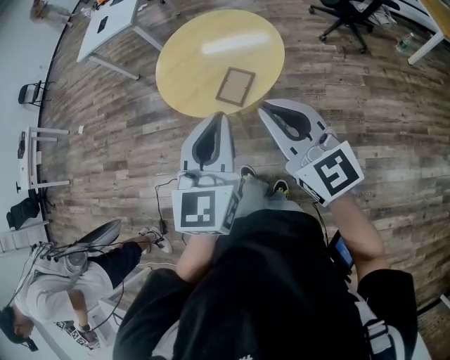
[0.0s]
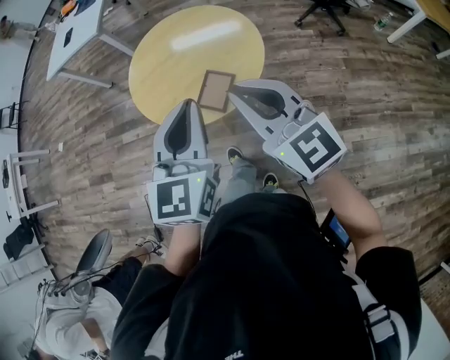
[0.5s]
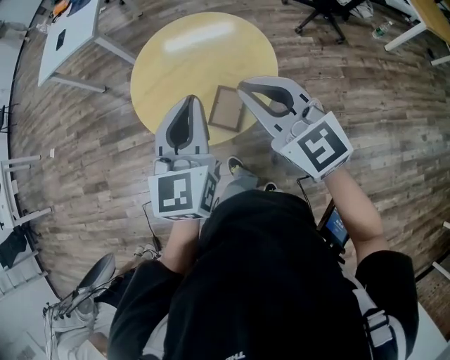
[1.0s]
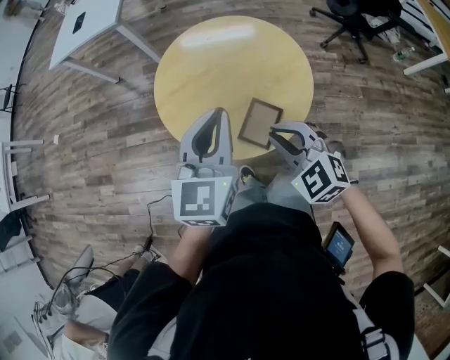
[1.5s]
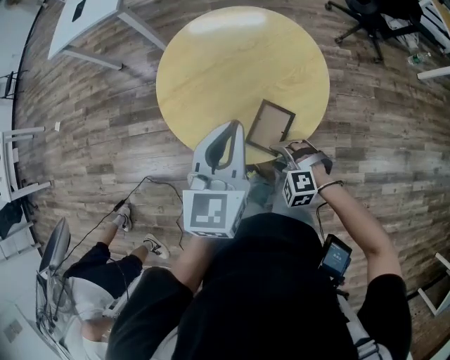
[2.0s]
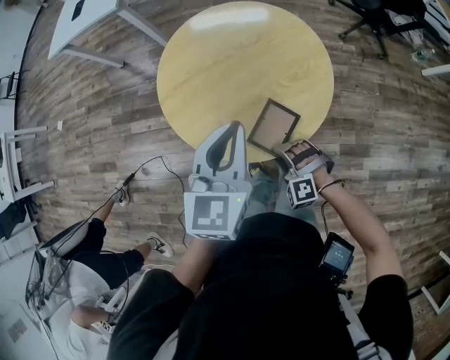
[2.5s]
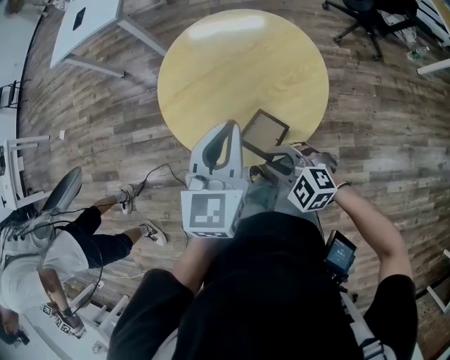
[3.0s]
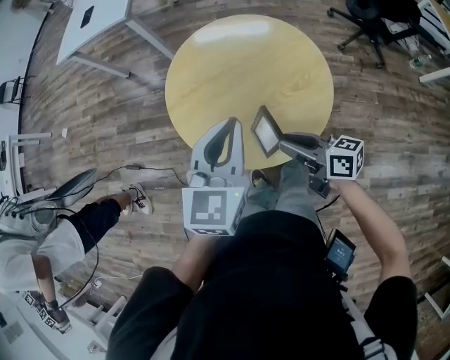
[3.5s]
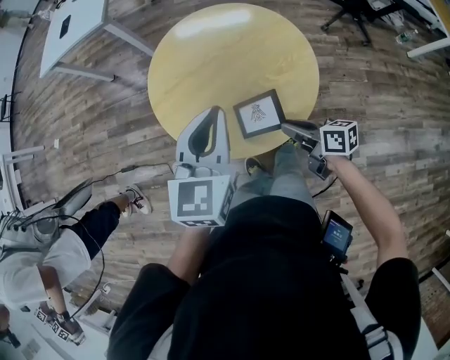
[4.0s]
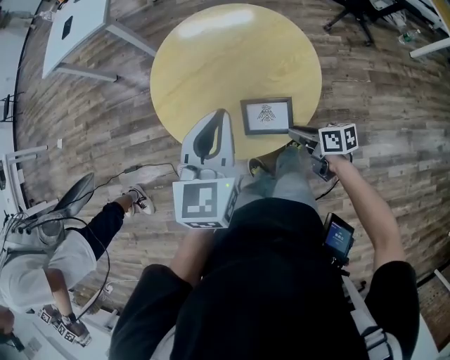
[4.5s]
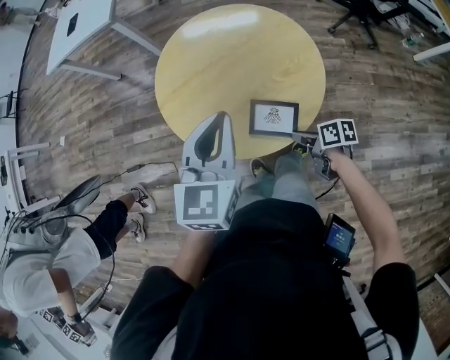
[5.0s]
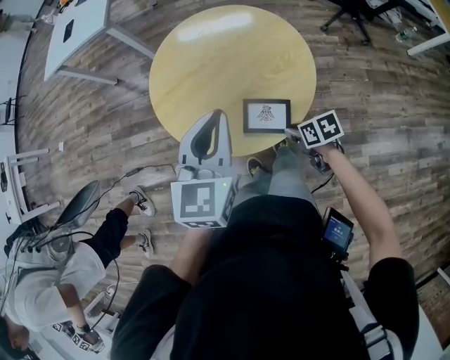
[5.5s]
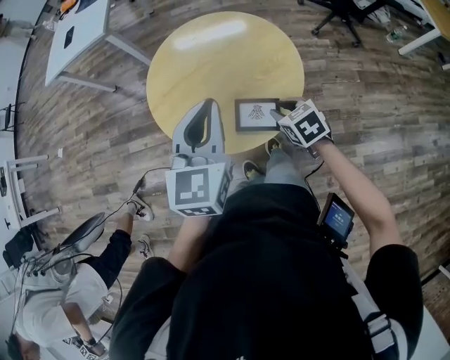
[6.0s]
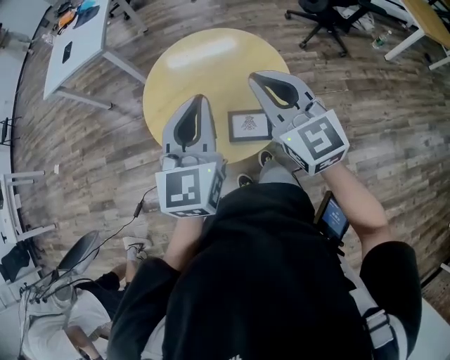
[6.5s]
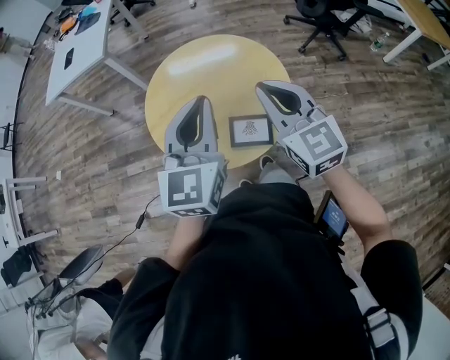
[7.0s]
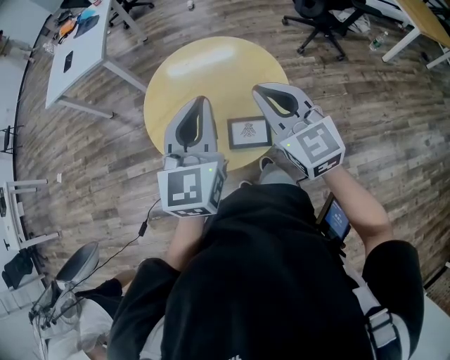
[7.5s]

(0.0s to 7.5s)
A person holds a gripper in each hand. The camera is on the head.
0.0s - 2.0s: The left gripper is displaced forward and downward by approximately 30 cm. The right gripper goes approximately 40 cm downward and forward, points its fingers approximately 60 degrees further downward, and opens up.
2.0s - 4.0s: The right gripper is displaced to the right, upward and forward by approximately 10 cm, rotates around the line of its fingers by some 90 degrees, clockwise from behind, and closes up.
4.0s - 5.5s: The right gripper moves downward, roughly 5 cm, and changes its angle by about 30 degrees.
5.5s - 7.5s: The left gripper moves upward, about 10 cm; the right gripper travels upward by roughly 35 cm, and tips its fingers upward by some 50 degrees.

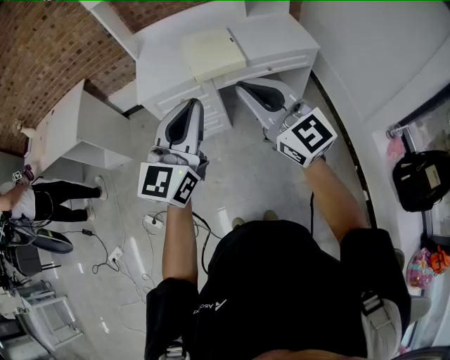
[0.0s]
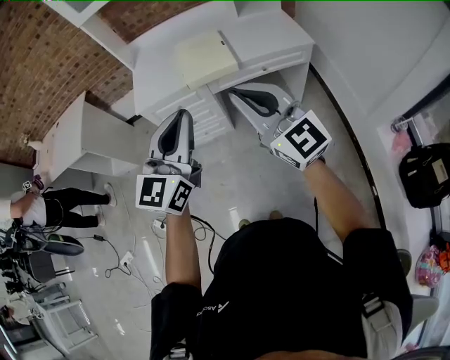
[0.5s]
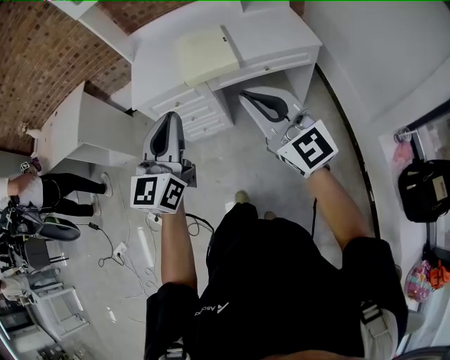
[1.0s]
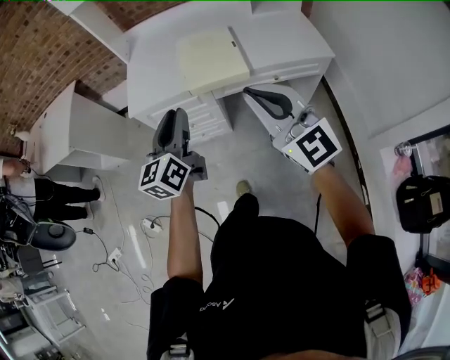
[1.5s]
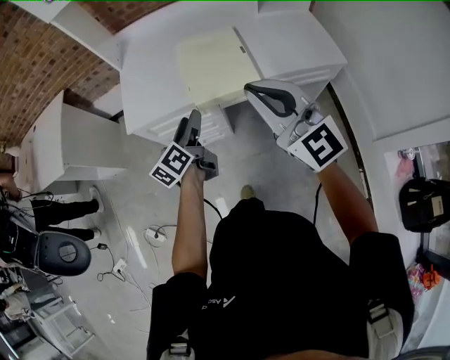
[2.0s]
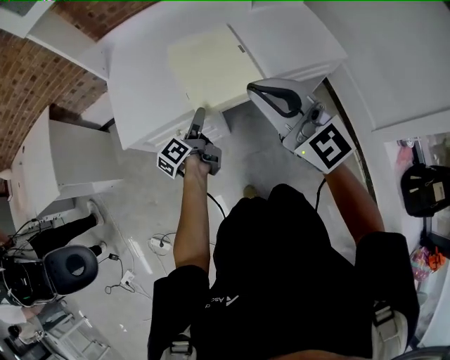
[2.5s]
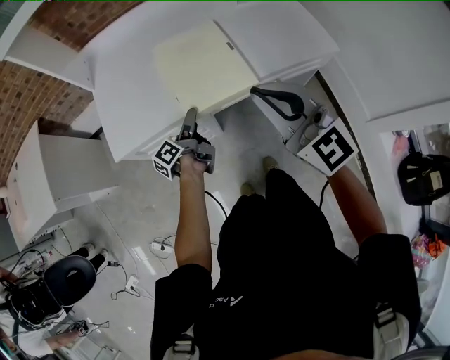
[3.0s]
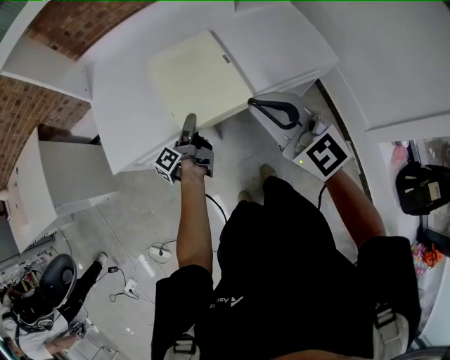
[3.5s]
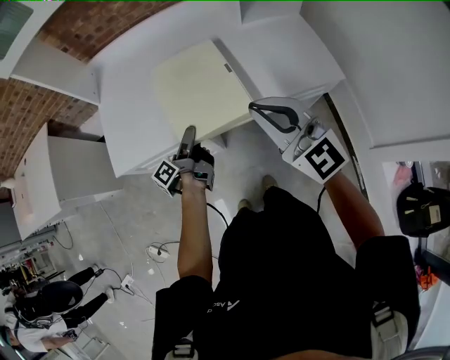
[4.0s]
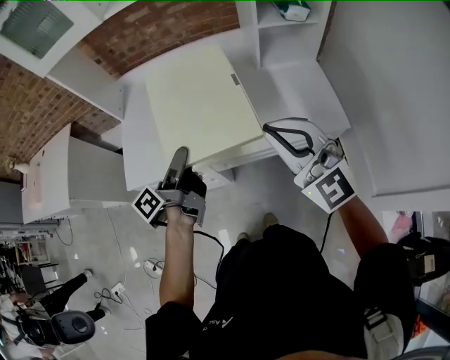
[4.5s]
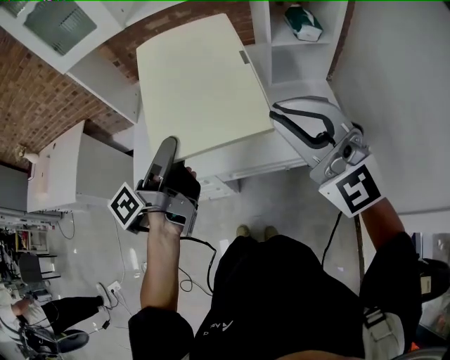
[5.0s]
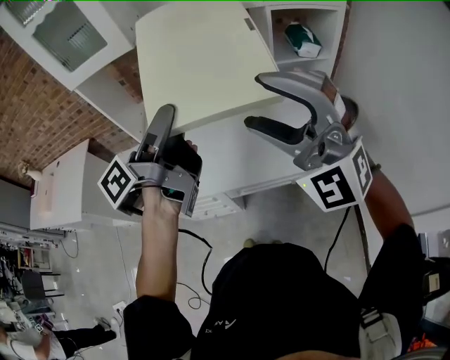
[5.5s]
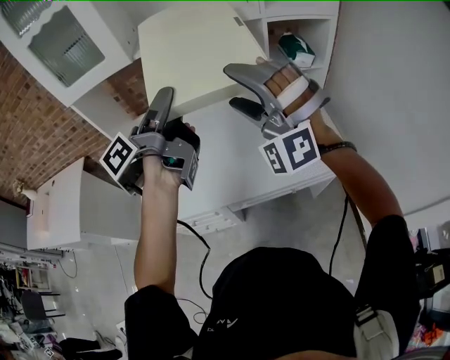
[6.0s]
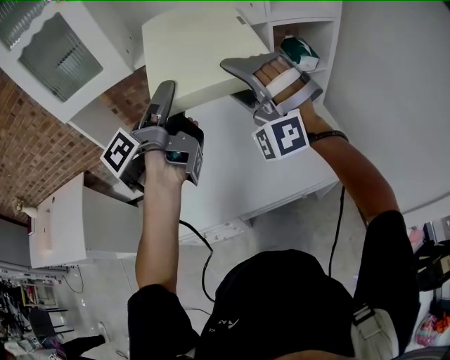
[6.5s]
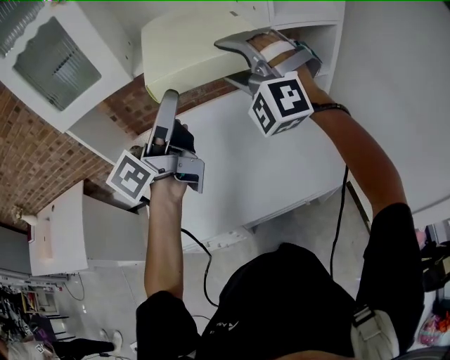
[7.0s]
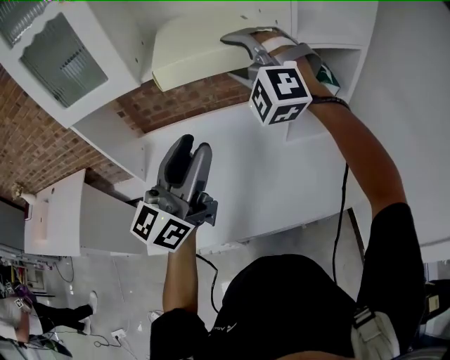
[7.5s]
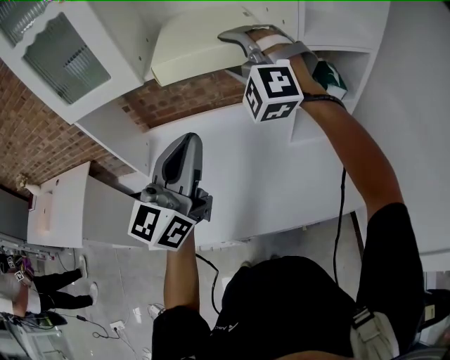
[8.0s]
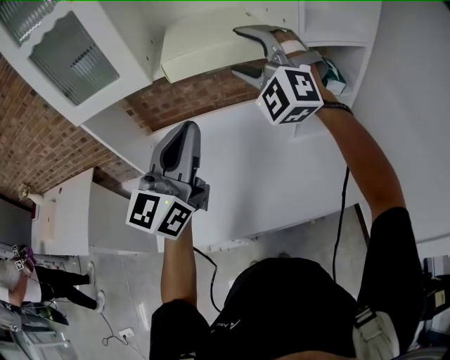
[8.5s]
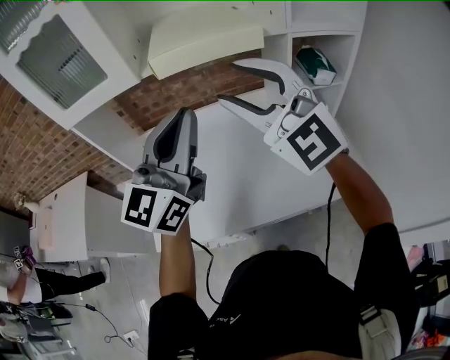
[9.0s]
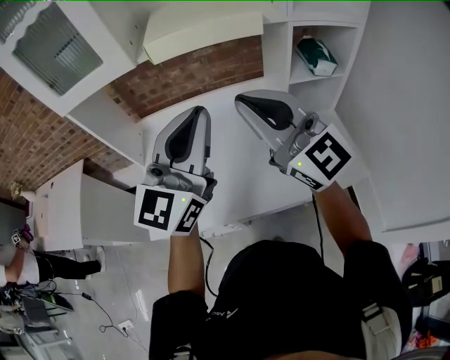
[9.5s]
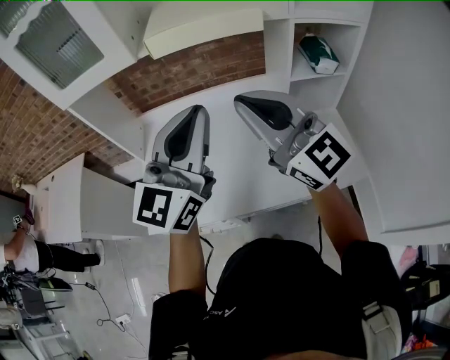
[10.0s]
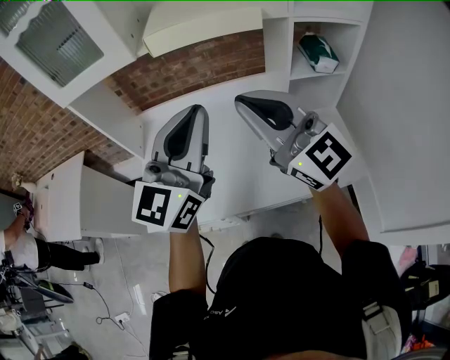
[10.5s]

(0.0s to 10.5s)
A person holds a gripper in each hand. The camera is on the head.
0.0s - 2.0s: The left gripper travels forward and downward by about 50 cm, rolls counterclockwise, seen from behind, by approximately 50 degrees, and opens its fingers; the right gripper travels forward by some 30 cm.
2.0s - 4.0s: The left gripper travels forward, downward and to the right by roughly 20 cm, and rotates around the line of its fingers by roughly 40 degrees, counterclockwise from behind, while the right gripper heads forward, to the right and downward, covering approximately 20 cm.
4.0s - 6.5s: The left gripper moves upward, some 50 cm, and swivels approximately 20 degrees, while the right gripper travels forward and upward by some 30 cm, rolls counterclockwise, seen from behind, by some 80 degrees, and opens its fingers.
6.5s - 8.5s: The left gripper rotates around the line of its fingers by approximately 80 degrees, clockwise from behind, and closes up; the right gripper travels forward and upward by approximately 15 cm, and swivels roughly 20 degrees.
8.5s - 10.5s: The left gripper moves roughly 5 cm. Meanwhile the right gripper shifts approximately 15 cm backward, rotates around the line of its fingers by about 60 degrees, clockwise from behind, and closes its fingers.

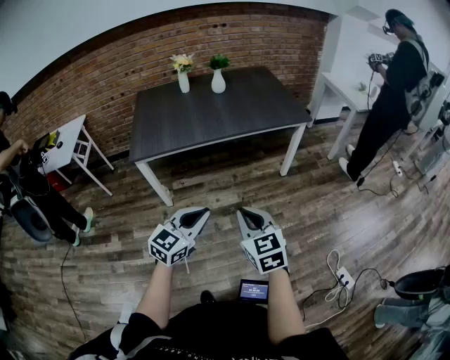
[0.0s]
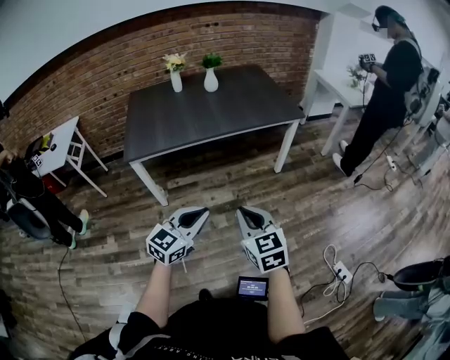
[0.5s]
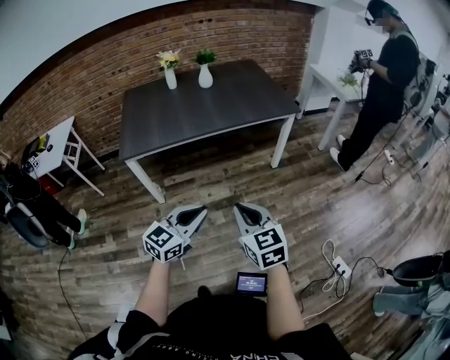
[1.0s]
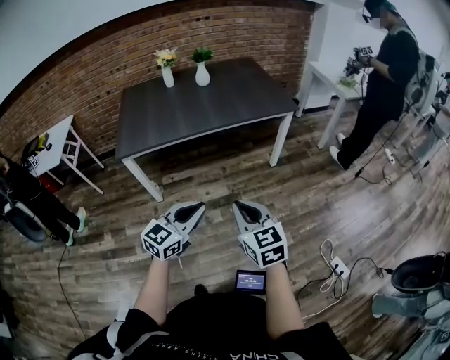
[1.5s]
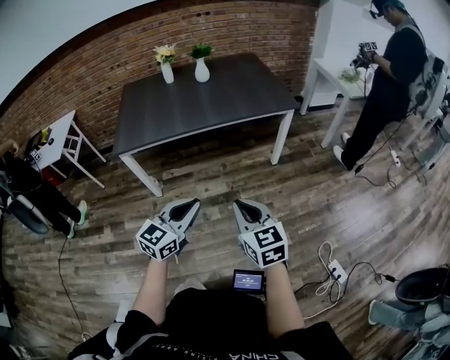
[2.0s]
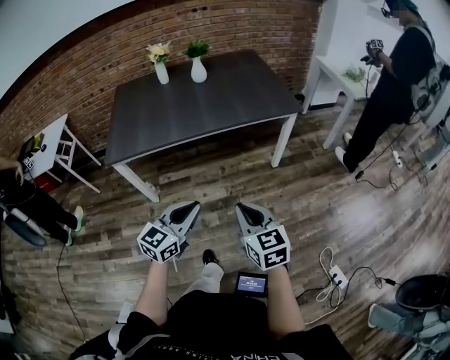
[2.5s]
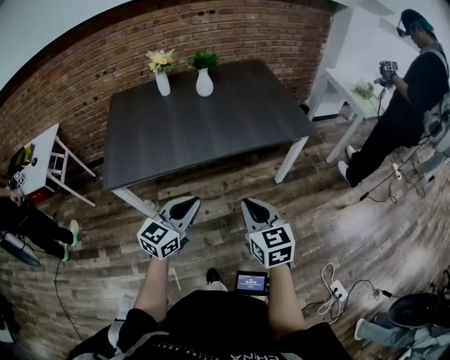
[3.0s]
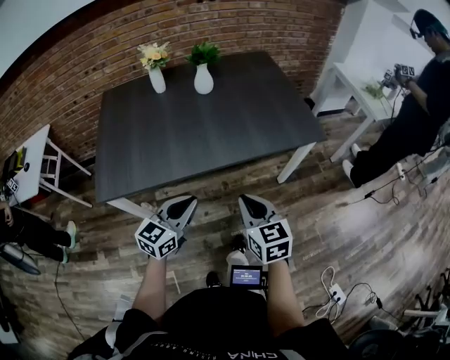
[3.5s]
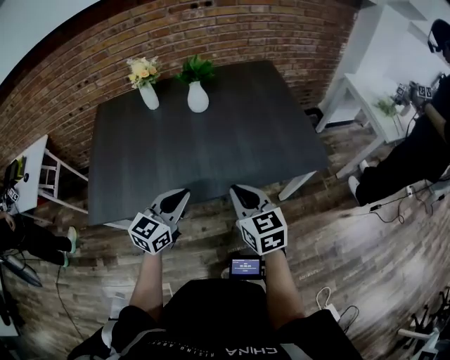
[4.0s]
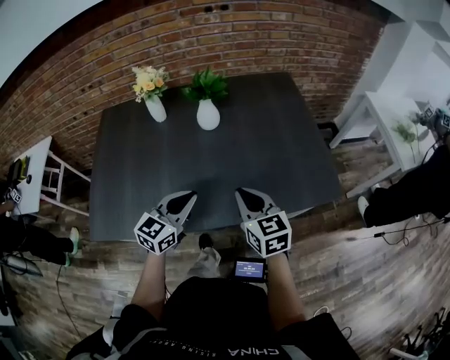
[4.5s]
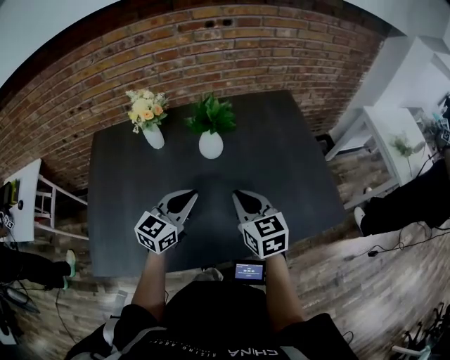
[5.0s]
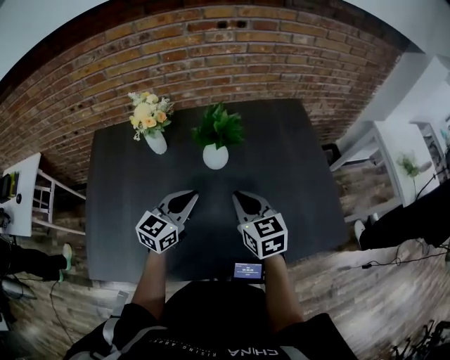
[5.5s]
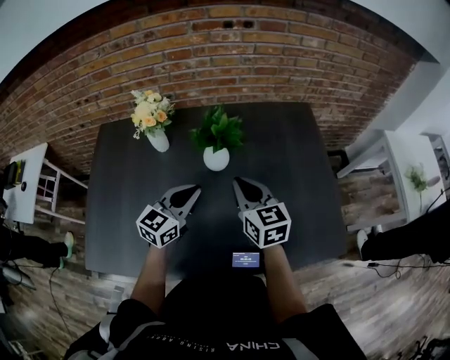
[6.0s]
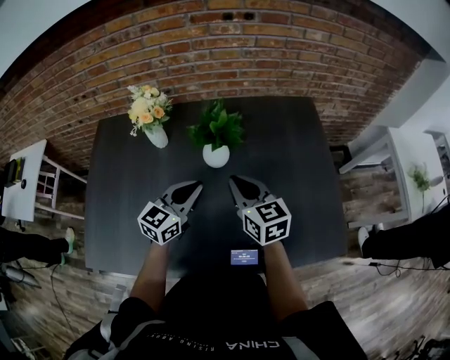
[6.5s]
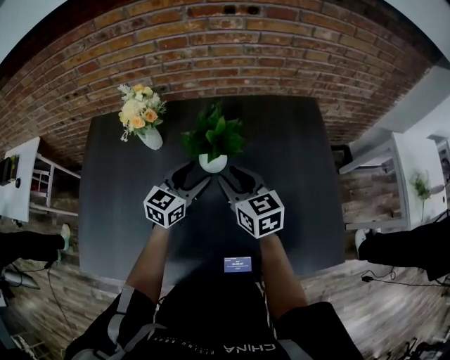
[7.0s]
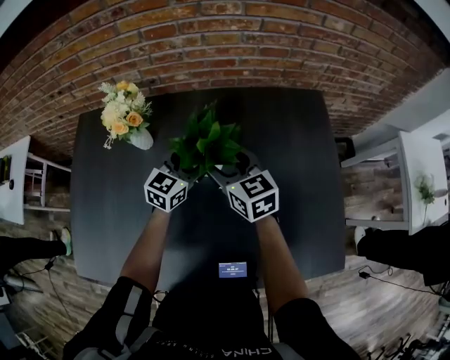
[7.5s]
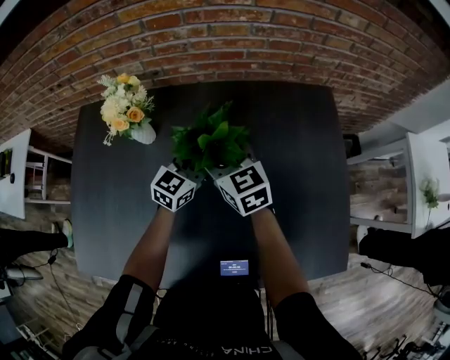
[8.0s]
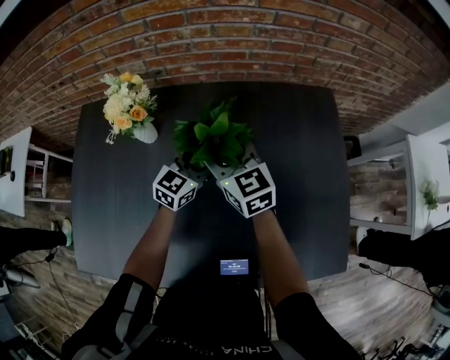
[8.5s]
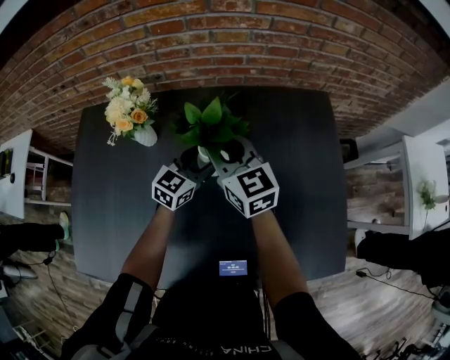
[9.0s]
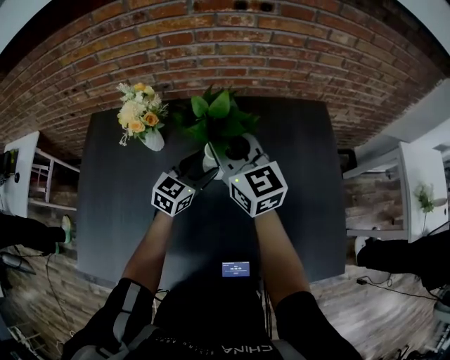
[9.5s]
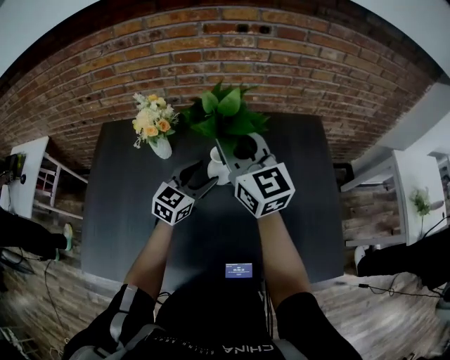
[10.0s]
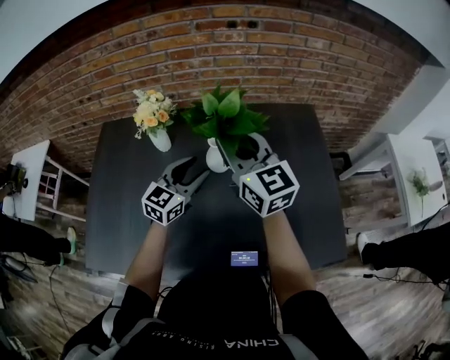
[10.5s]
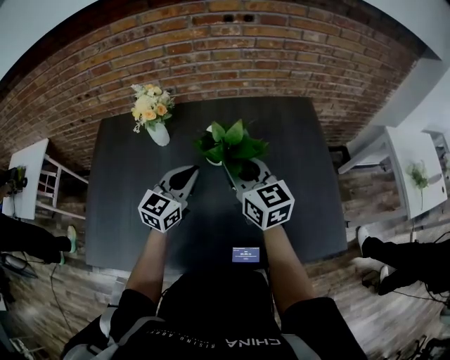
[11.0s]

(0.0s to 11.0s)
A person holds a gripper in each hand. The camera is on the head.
0.0s - 2.0s: The two grippers go about 10 cm to the right.
2.0s - 3.5s: Both grippers travel together forward, about 35 cm.
3.5s - 5.5s: The two grippers travel together, forward, some 50 cm.
5.5s - 7.5s: Both grippers travel together forward, about 20 cm. The right gripper opens up; the left gripper opens up.
7.5s - 9.0s: The right gripper travels upward by roughly 5 cm, and closes up.
9.0s - 11.0s: The right gripper travels backward by approximately 15 cm. Meanwhile the left gripper shifts some 20 cm backward and upward, and closes its fingers.
